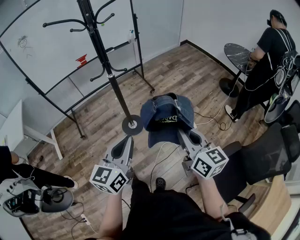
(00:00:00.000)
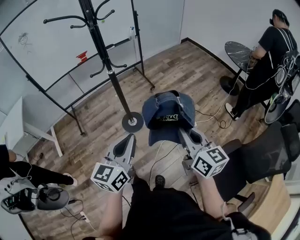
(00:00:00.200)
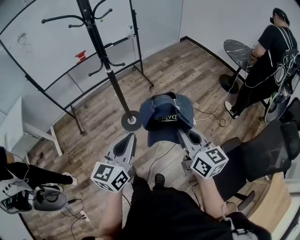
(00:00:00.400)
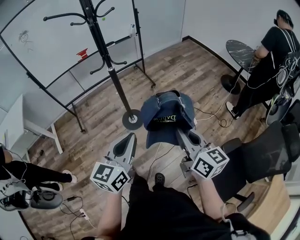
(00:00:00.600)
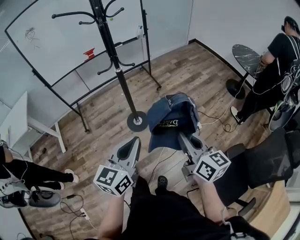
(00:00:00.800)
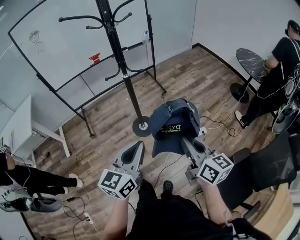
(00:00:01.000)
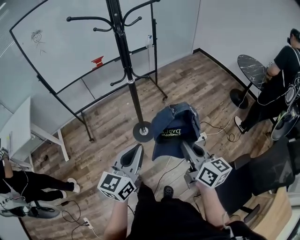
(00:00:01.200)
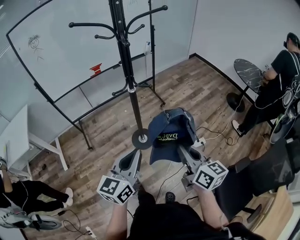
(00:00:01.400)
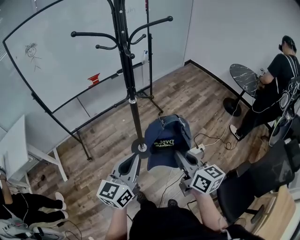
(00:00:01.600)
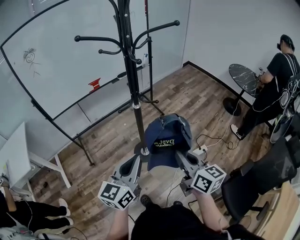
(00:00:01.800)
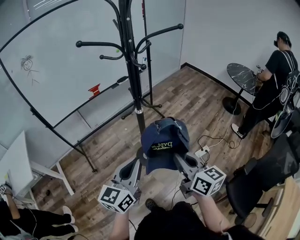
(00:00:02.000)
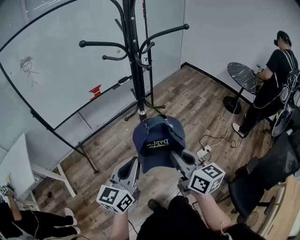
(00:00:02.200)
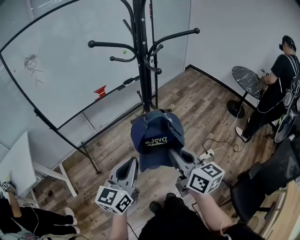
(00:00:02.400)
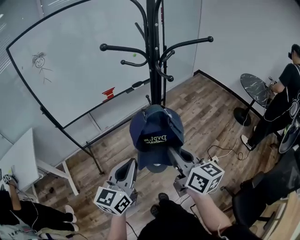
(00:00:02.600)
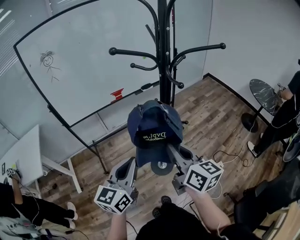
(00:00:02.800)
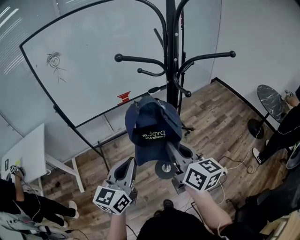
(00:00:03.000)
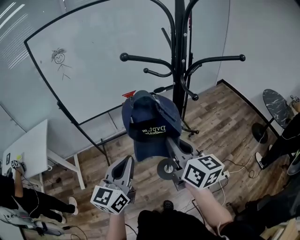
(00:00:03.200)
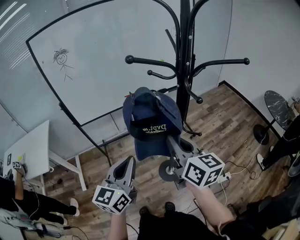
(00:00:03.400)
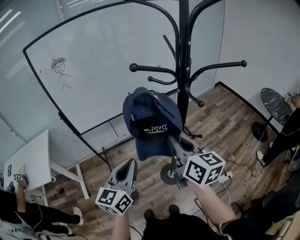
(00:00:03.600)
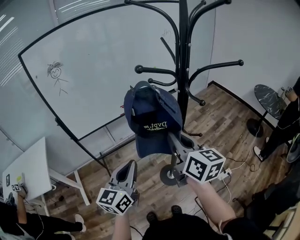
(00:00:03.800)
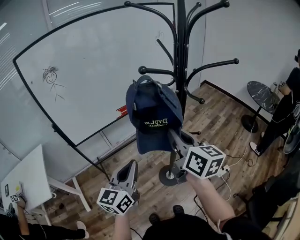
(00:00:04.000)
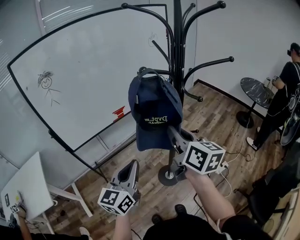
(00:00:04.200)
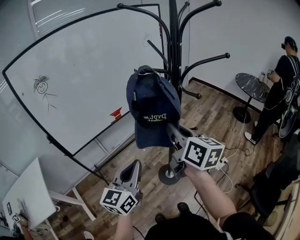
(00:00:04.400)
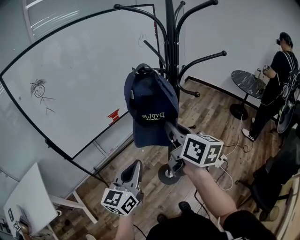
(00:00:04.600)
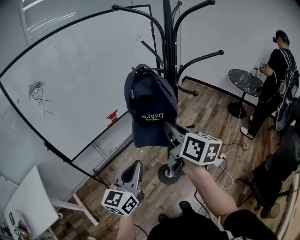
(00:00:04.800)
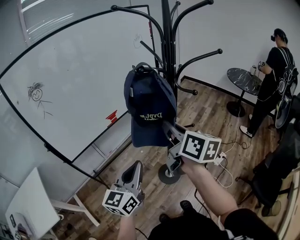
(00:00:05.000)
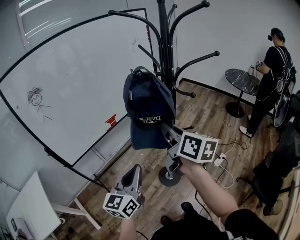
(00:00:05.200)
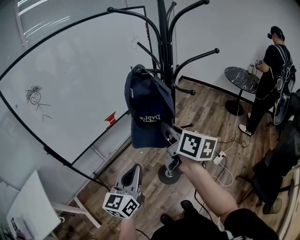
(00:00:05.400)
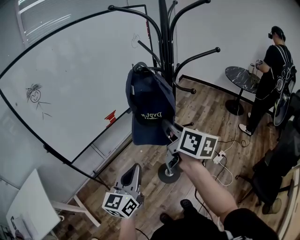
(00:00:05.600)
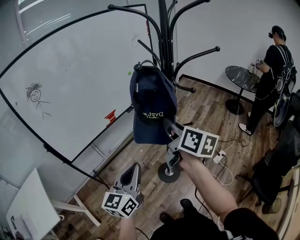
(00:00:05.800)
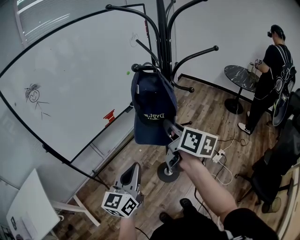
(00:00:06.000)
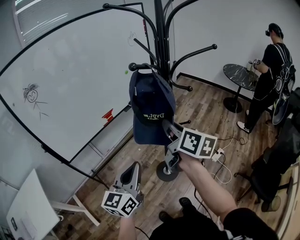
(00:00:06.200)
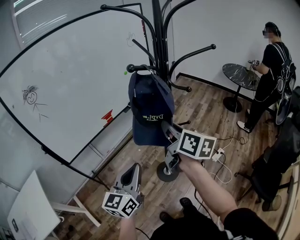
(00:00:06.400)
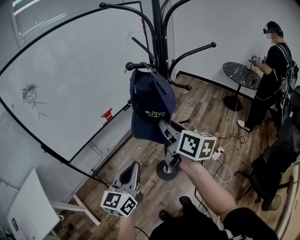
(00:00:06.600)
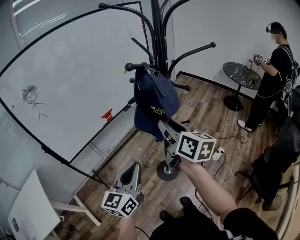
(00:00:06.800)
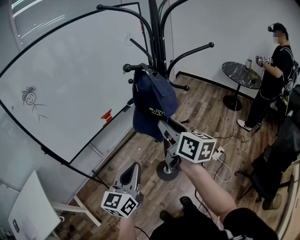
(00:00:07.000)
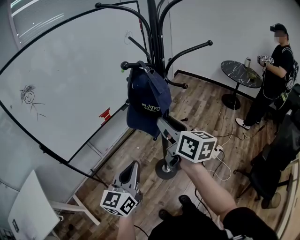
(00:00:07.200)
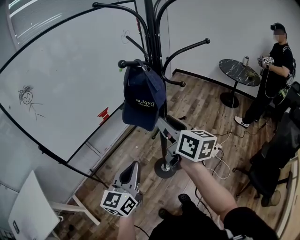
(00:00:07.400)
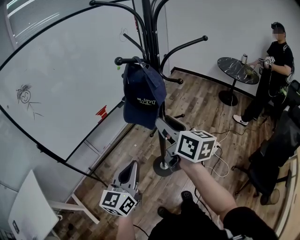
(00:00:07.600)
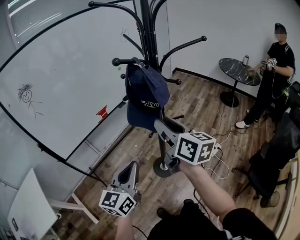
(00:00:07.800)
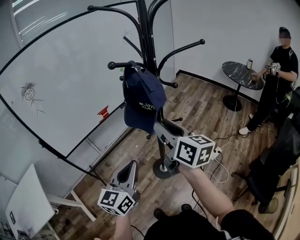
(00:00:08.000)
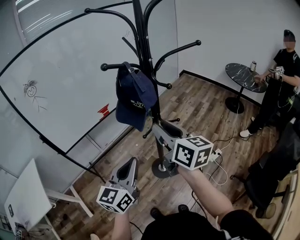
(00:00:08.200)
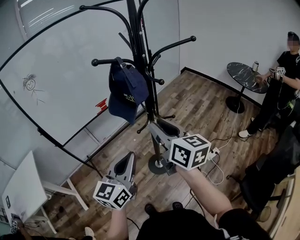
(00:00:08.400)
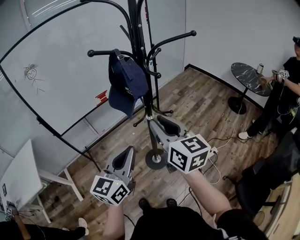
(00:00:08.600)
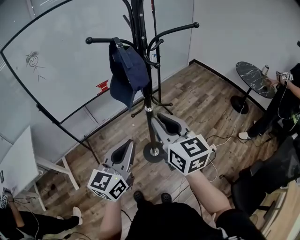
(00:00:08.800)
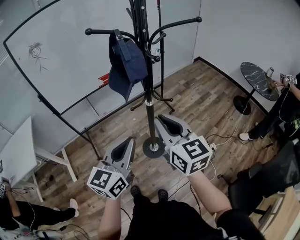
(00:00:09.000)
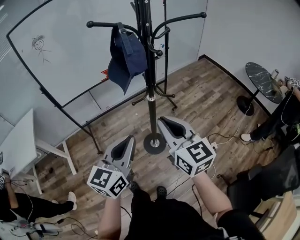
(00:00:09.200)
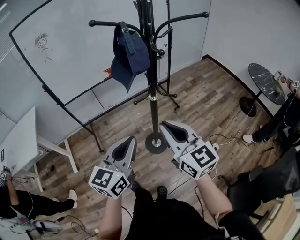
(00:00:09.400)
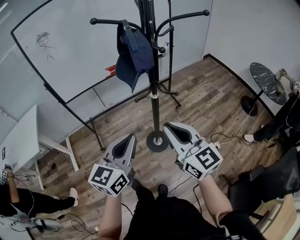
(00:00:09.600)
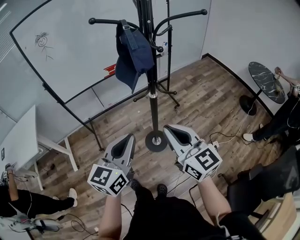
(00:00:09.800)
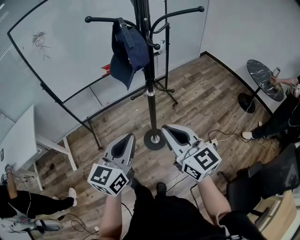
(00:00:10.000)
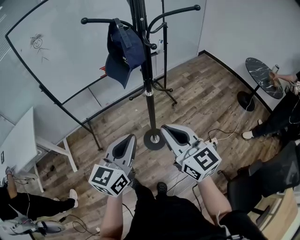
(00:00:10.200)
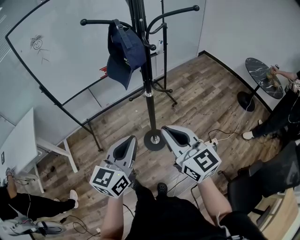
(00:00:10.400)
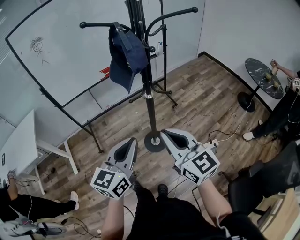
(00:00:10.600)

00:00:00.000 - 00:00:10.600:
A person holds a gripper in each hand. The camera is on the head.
00:00:00.000 - 00:00:01.600: Both grippers move to the left and forward, about 15 cm.
00:00:01.600 - 00:00:03.000: The left gripper heads to the left and forward, covering some 20 cm. Meanwhile the right gripper heads to the left, forward and upward, covering roughly 30 cm.
00:00:03.000 - 00:00:04.600: The left gripper heads to the left, covering about 5 cm. Meanwhile the right gripper heads forward, upward and to the left, covering roughly 10 cm, and turns by roughly 20 degrees.
00:00:04.600 - 00:00:06.000: There are only small adjustments of the grippers.
00:00:06.000 - 00:00:07.600: The right gripper opens its fingers.
00:00:07.600 - 00:00:09.000: The right gripper heads to the right and backward, covering approximately 10 cm, changes its angle by roughly 30 degrees, and closes up. The left gripper heads to the right, covering about 15 cm.
00:00:09.000 - 00:00:10.600: The right gripper shifts some 5 cm backward.

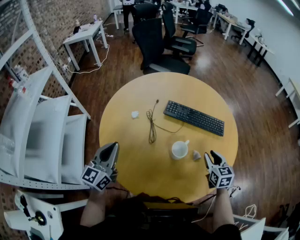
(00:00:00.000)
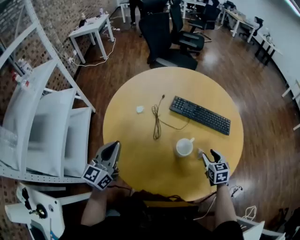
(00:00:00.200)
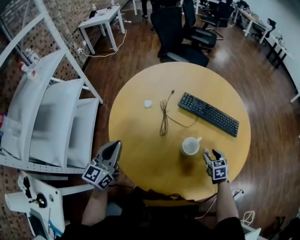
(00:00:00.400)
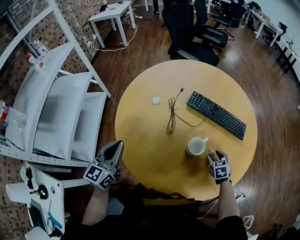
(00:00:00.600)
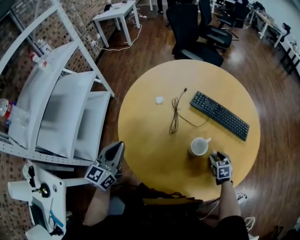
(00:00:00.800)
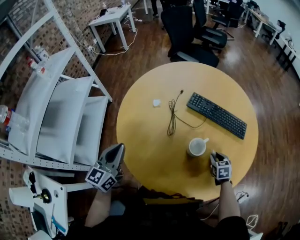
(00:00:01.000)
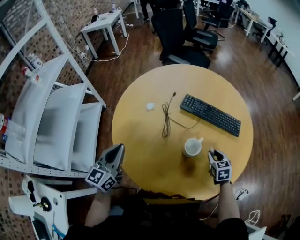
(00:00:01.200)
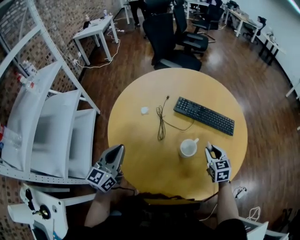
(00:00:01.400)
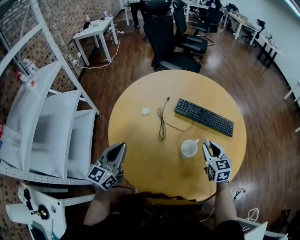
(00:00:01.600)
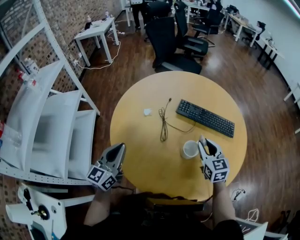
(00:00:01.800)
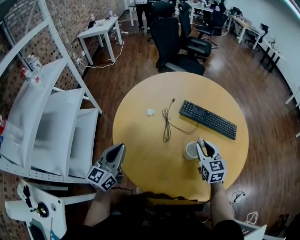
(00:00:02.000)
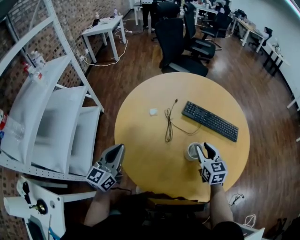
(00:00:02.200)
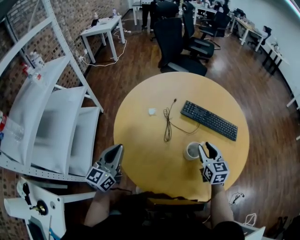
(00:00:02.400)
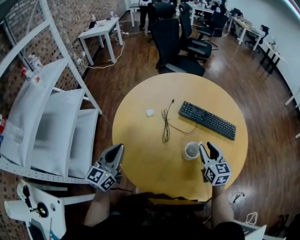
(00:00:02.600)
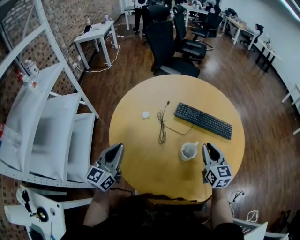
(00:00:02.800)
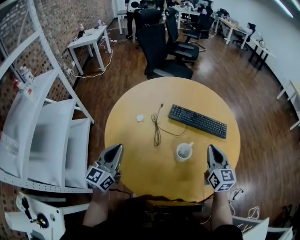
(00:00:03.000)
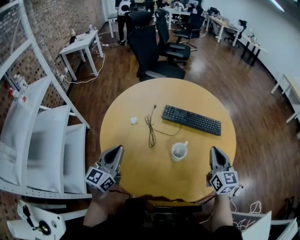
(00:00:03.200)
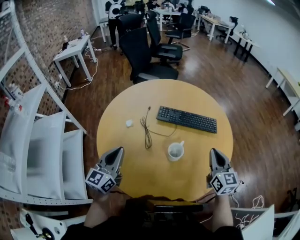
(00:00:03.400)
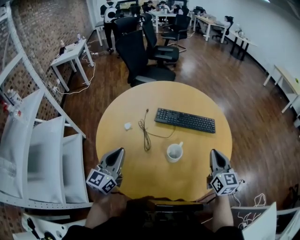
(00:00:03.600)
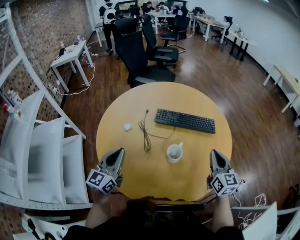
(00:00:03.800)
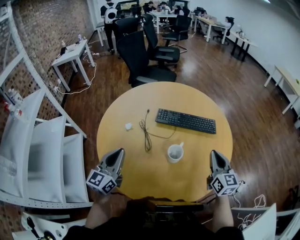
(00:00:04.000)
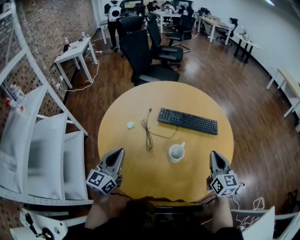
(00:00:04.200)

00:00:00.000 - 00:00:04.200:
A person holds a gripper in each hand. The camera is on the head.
00:00:00.000 - 00:00:01.400: The right gripper moves some 15 cm downward and comes back.
00:00:01.400 - 00:00:02.800: The right gripper moves upward, about 10 cm, and changes its angle by some 20 degrees.
00:00:02.800 - 00:00:04.200: The left gripper shifts roughly 5 cm to the right; the right gripper heads to the right and backward, covering roughly 10 cm.

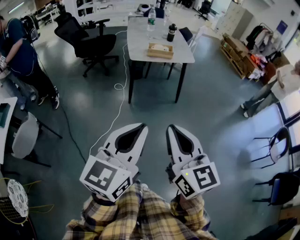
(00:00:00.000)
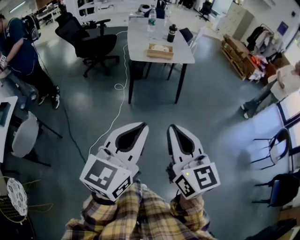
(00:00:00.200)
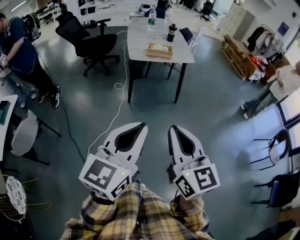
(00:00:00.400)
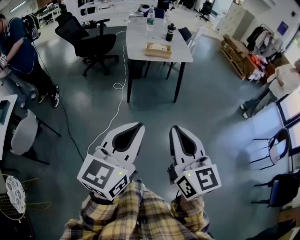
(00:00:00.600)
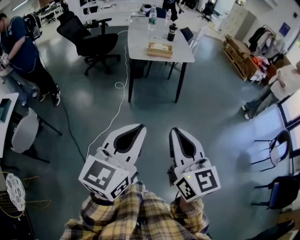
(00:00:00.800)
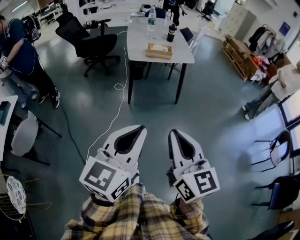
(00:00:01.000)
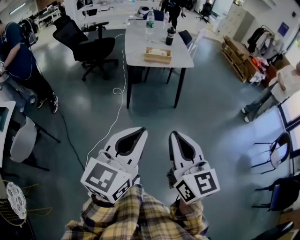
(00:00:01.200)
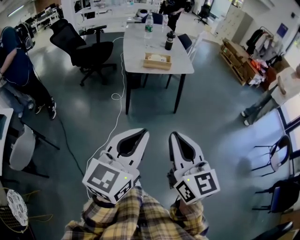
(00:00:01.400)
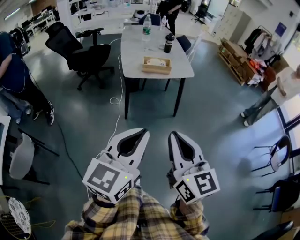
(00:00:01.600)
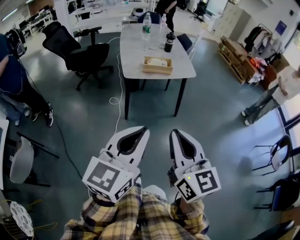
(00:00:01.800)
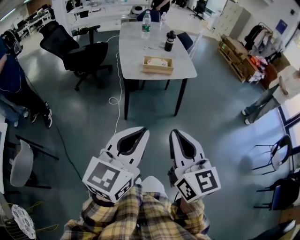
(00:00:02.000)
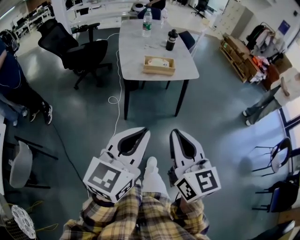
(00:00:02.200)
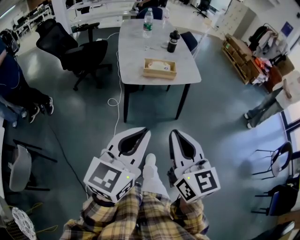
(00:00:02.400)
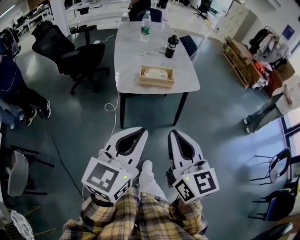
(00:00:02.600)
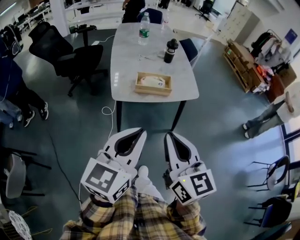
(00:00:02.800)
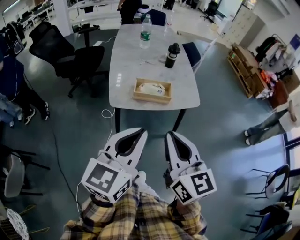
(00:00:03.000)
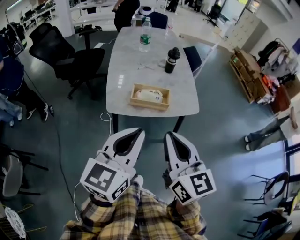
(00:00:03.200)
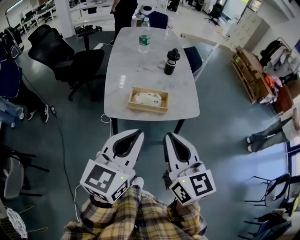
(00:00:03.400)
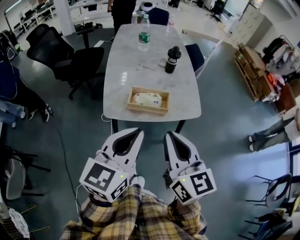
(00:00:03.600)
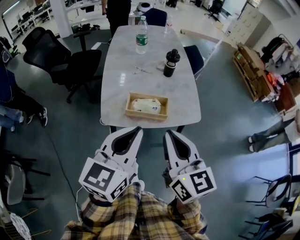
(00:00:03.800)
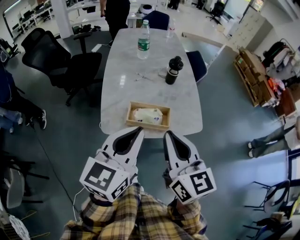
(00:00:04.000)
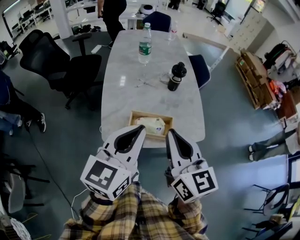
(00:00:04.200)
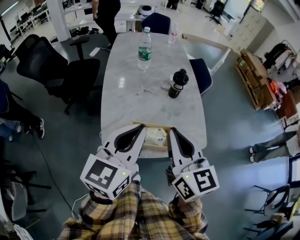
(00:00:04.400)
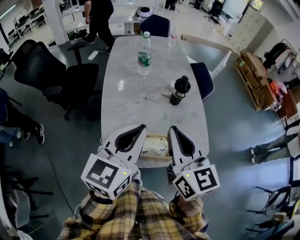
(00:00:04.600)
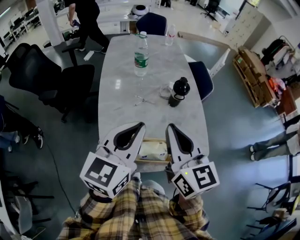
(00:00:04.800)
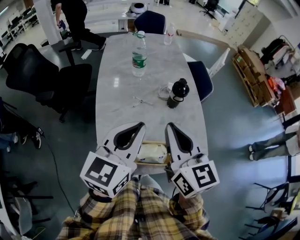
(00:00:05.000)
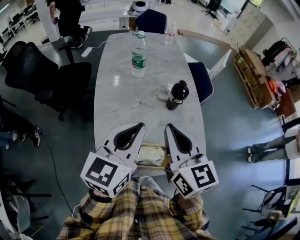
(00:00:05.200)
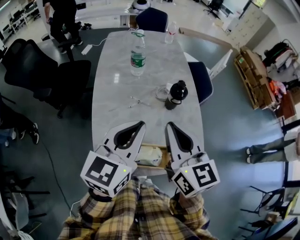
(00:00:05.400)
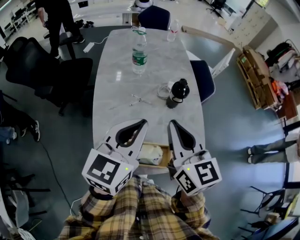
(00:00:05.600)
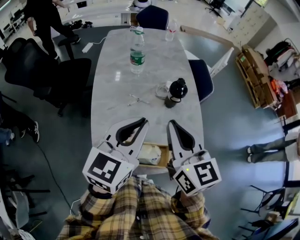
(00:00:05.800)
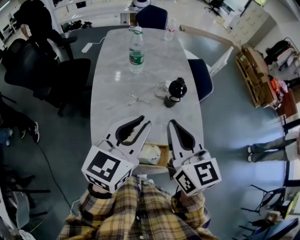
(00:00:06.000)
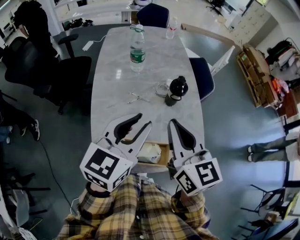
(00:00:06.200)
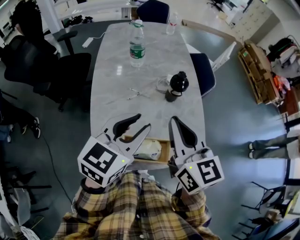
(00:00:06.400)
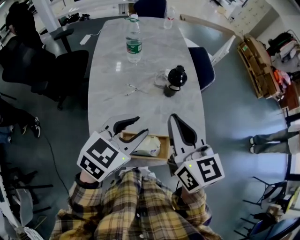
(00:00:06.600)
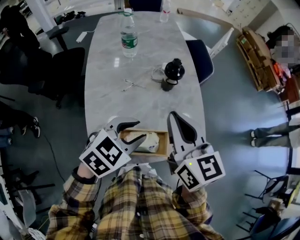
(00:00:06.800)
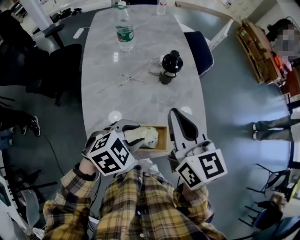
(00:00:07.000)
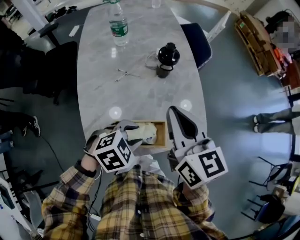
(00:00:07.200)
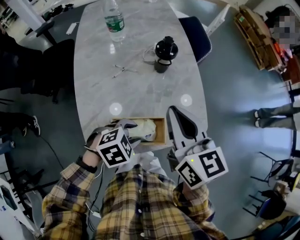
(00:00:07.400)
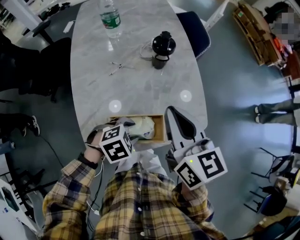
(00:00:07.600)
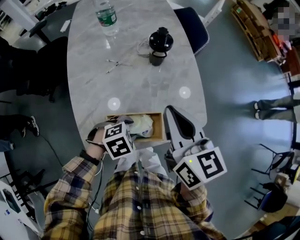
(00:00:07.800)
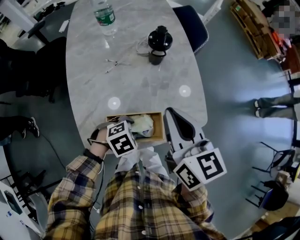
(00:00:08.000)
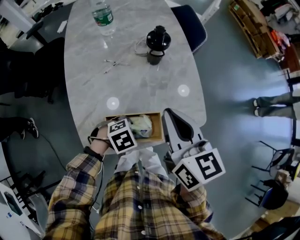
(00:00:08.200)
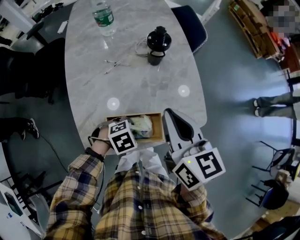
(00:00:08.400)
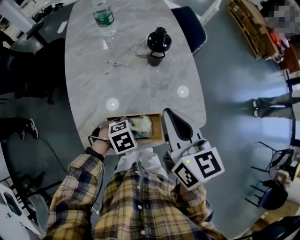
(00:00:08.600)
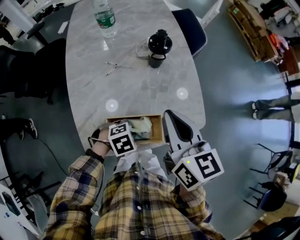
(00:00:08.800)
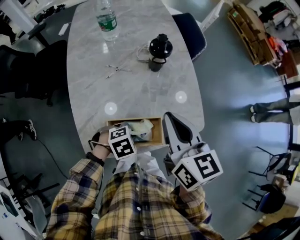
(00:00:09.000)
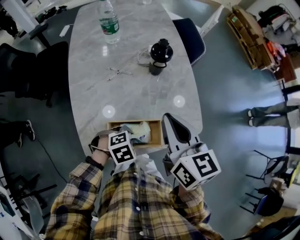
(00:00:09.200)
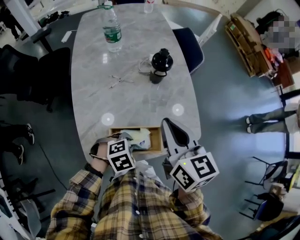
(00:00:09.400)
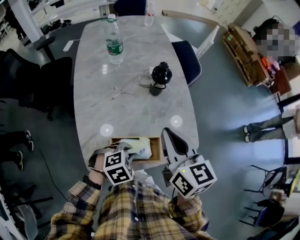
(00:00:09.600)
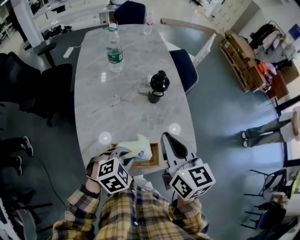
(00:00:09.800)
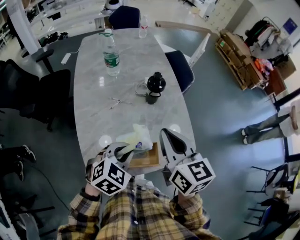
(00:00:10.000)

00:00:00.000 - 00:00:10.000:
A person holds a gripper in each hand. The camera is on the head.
00:00:00.000 - 00:00:01.400: Both grippers move forward, roughly 10 cm.
00:00:01.400 - 00:00:02.800: Both grippers move forward, about 35 cm.
00:00:02.800 - 00:00:04.200: The grippers both shift forward by approximately 30 cm.
00:00:04.200 - 00:00:05.800: The grippers both shift forward by about 20 cm.
00:00:05.800 - 00:00:07.200: The right gripper is displaced downward by some 5 cm; the left gripper is displaced downward by approximately 20 cm, points its fingers approximately 50 degrees further downward, and opens up.
00:00:07.200 - 00:00:08.600: The right gripper changes place by roughly 5 cm, while the left gripper moves downward, about 15 cm.
00:00:08.600 - 00:00:10.000: The left gripper is displaced upward by about 20 cm, and changes its angle by some 40 degrees.
